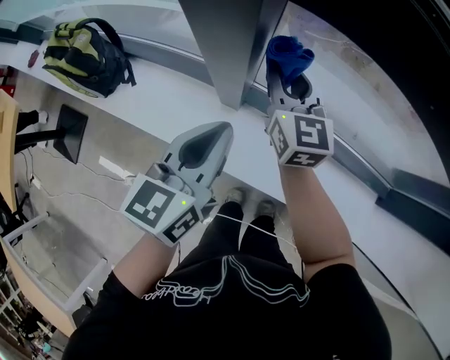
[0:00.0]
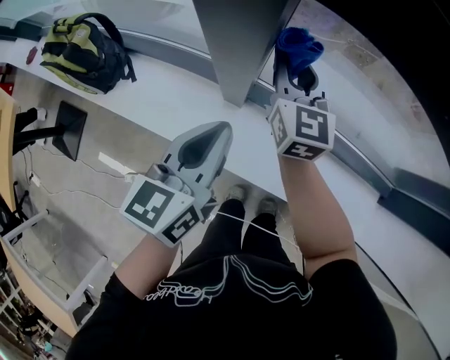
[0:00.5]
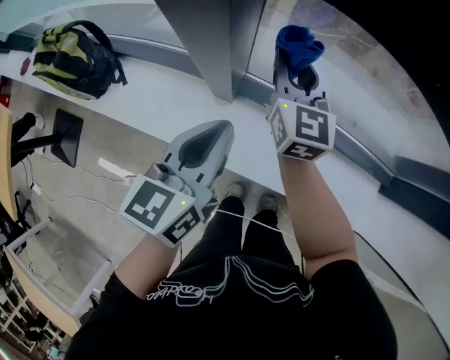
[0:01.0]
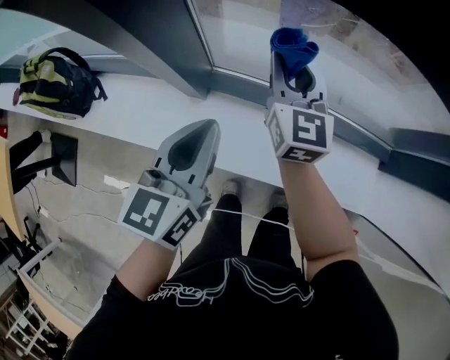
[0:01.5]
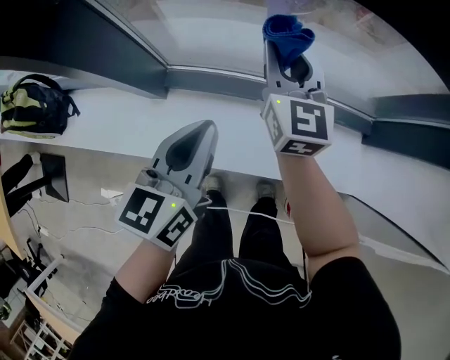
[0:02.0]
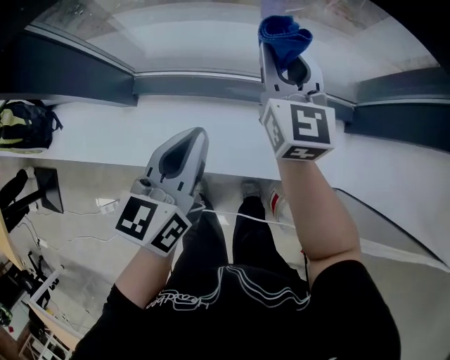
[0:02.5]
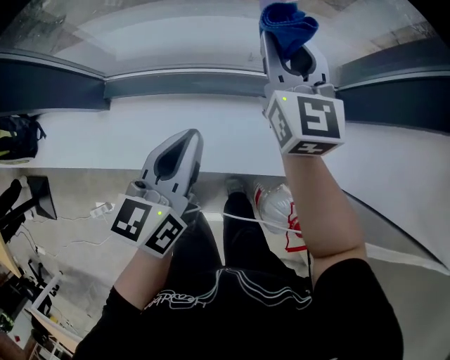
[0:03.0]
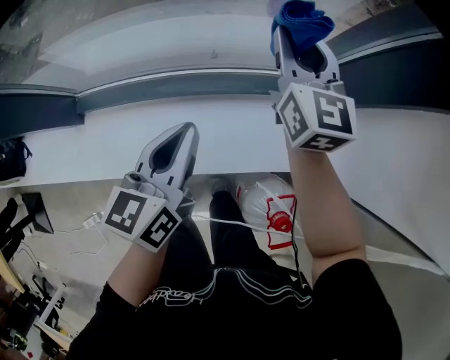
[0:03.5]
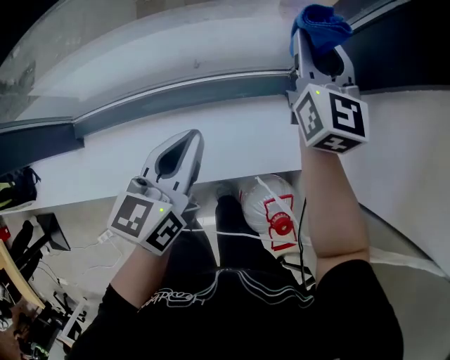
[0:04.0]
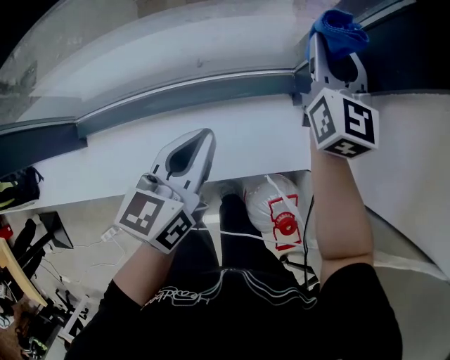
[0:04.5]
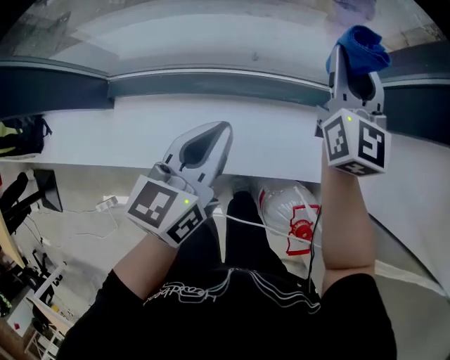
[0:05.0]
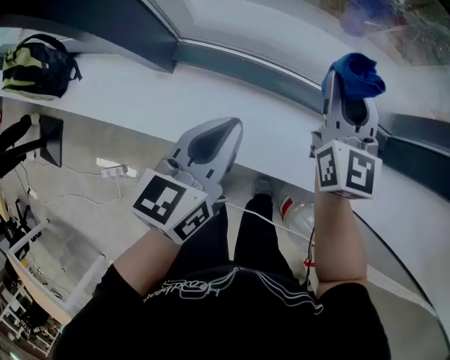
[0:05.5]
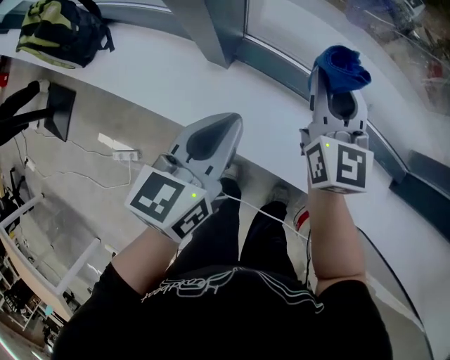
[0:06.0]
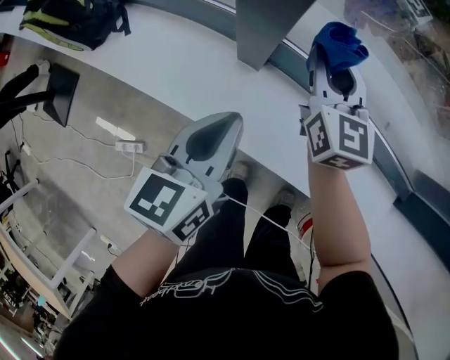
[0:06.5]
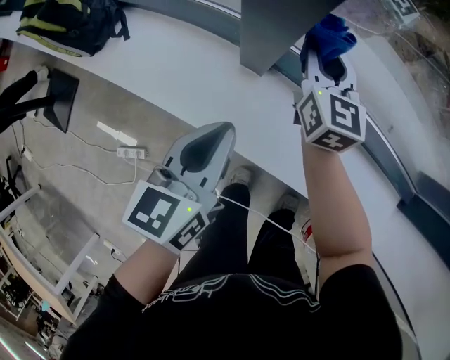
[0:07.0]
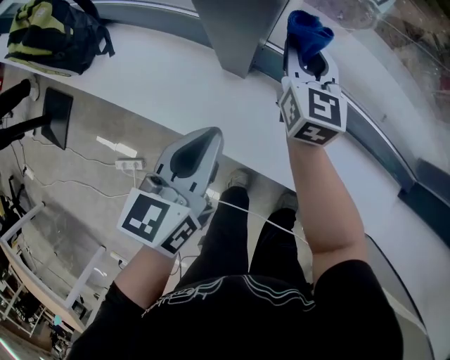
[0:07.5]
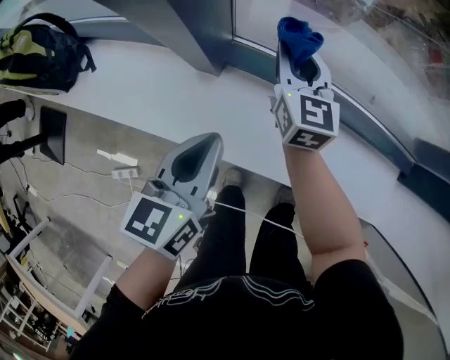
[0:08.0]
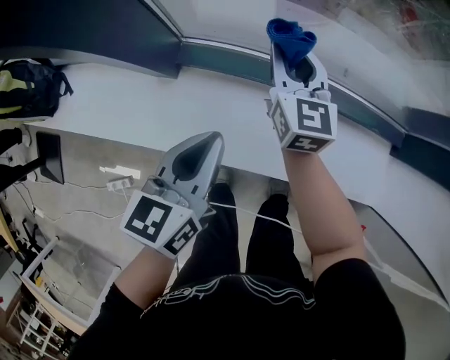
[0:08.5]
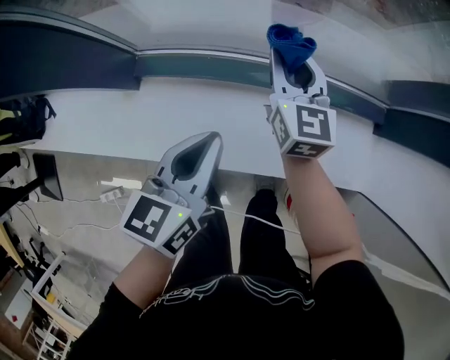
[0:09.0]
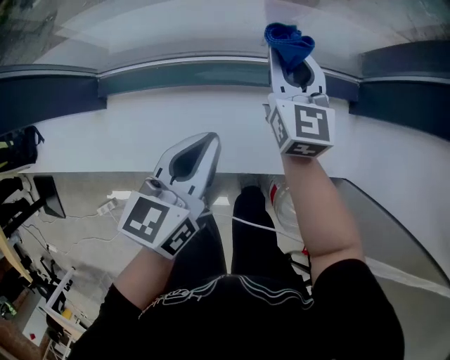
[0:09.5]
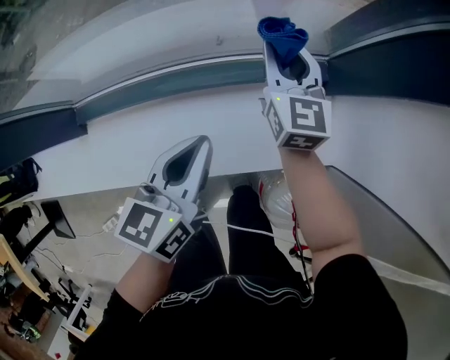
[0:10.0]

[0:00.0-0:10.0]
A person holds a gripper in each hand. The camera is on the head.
0:00.0 to 0:02.0: The two grippers go roughly 25 cm to the right.
0:02.0 to 0:04.0: The grippers both shift to the right by roughly 40 cm. The right gripper turns by roughly 20 degrees.
0:04.0 to 0:06.0: The two grippers travel together, roughly 60 cm. The right gripper rotates some 30 degrees. The left gripper turns by about 30 degrees.
0:06.0 to 0:08.0: The right gripper moves downward, forward and to the left, about 15 cm; the left gripper goes about 5 cm downward, and moves about 10 cm to the left and comes back.
0:08.0 to 0:10.0: The pair of grippers is taken to the right, approximately 50 cm. The right gripper rotates about 20 degrees, while the left gripper swivels approximately 30 degrees.

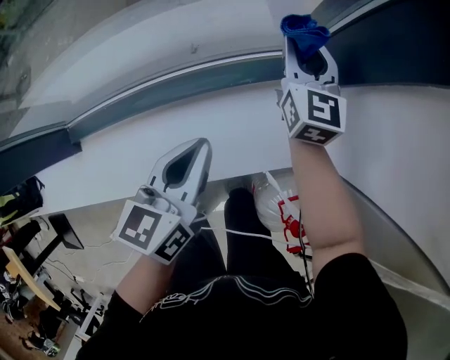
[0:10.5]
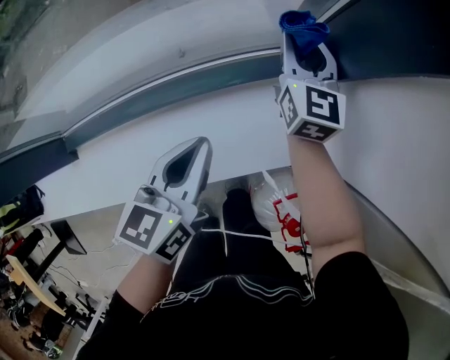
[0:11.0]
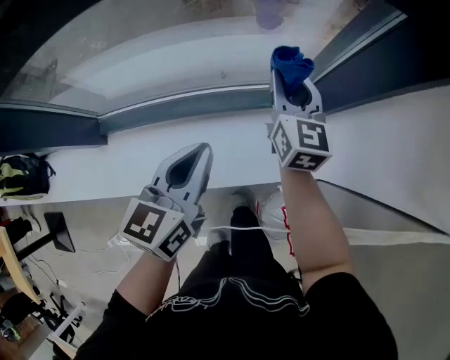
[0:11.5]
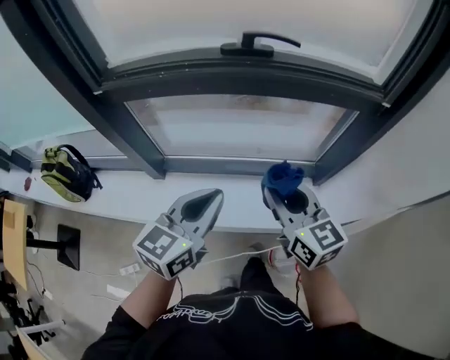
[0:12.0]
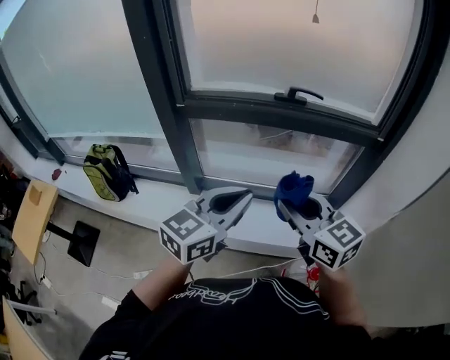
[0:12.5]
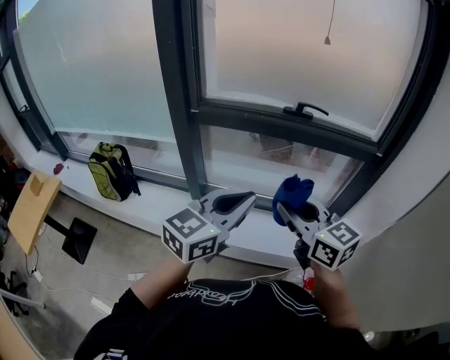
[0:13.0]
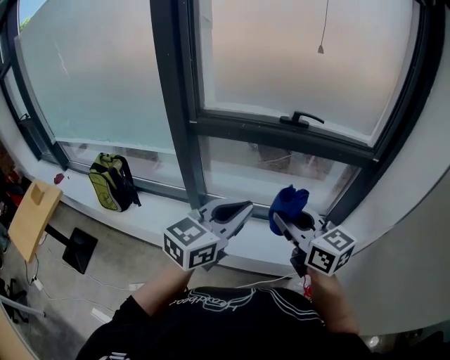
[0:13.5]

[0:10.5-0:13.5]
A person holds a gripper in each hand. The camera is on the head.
0:10.5 to 0:12.0: The left gripper shifts roughly 40 cm upward, backward and to the left, and turns by roughly 20 degrees, while the right gripper goes some 50 cm backward, upward and to the left, and turns by roughly 40 degrees.
0:12.0 to 0:13.5: The two grippers go approximately 25 cm upward, backward and to the left.

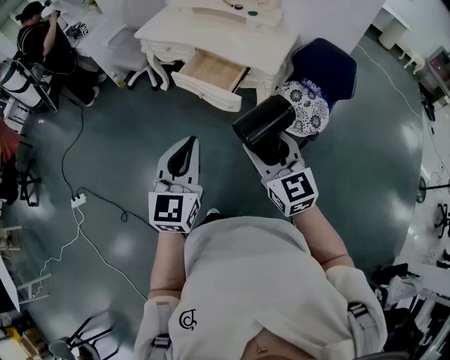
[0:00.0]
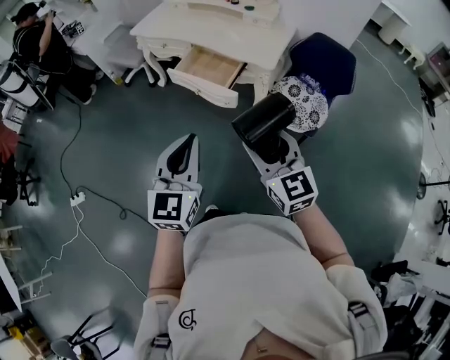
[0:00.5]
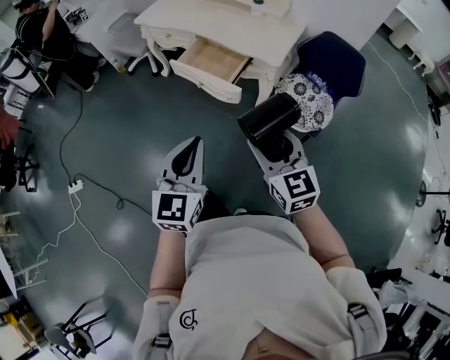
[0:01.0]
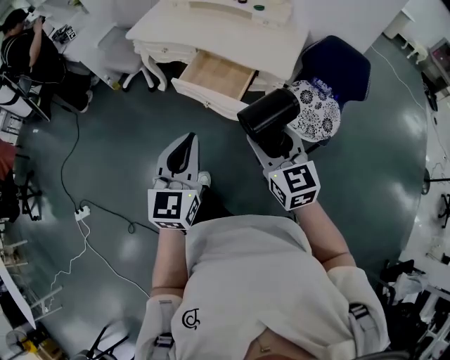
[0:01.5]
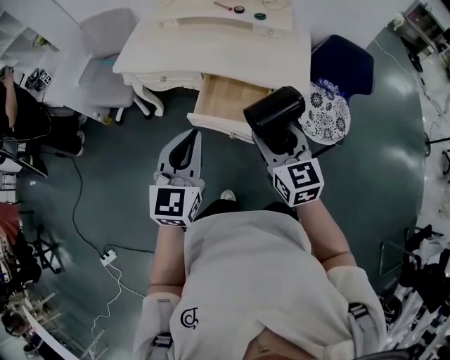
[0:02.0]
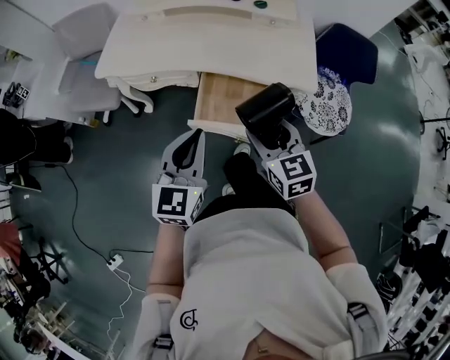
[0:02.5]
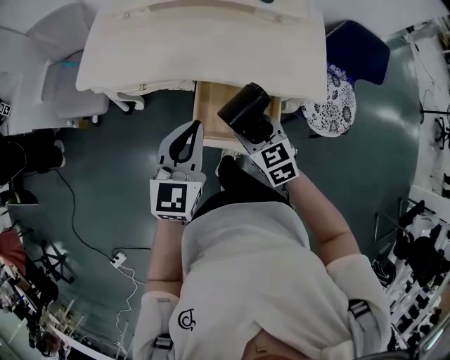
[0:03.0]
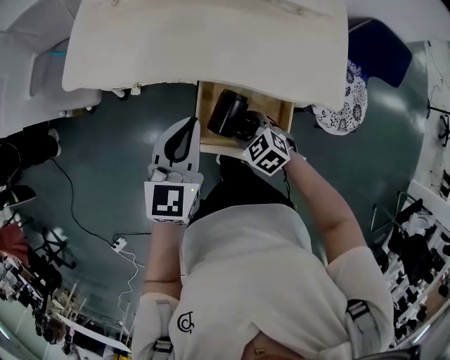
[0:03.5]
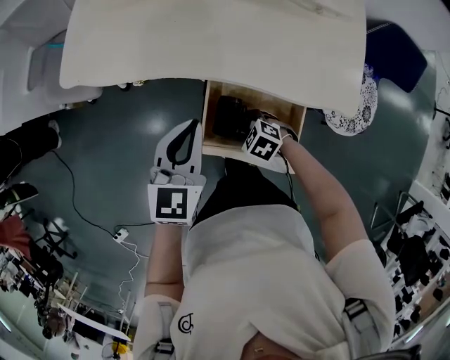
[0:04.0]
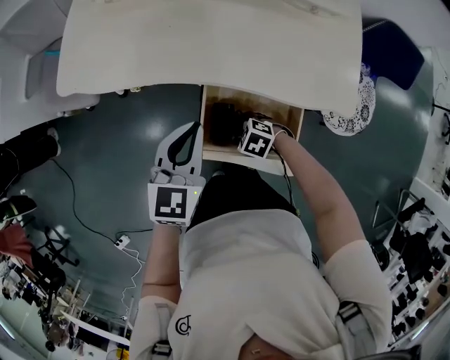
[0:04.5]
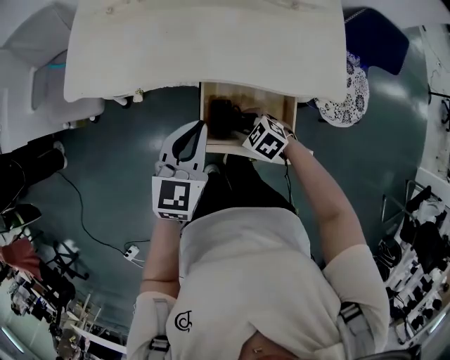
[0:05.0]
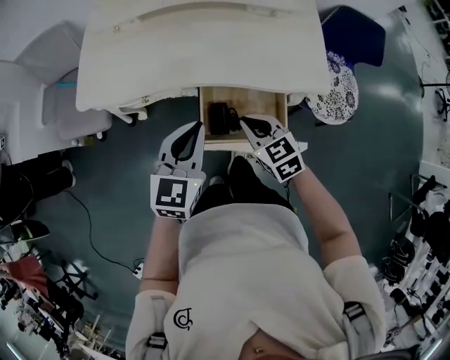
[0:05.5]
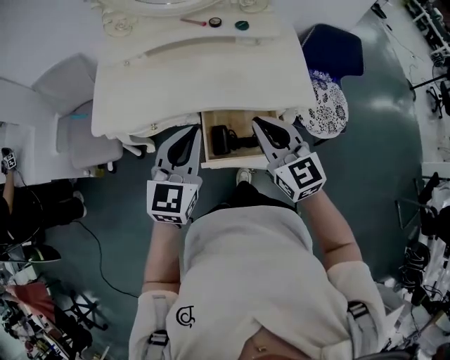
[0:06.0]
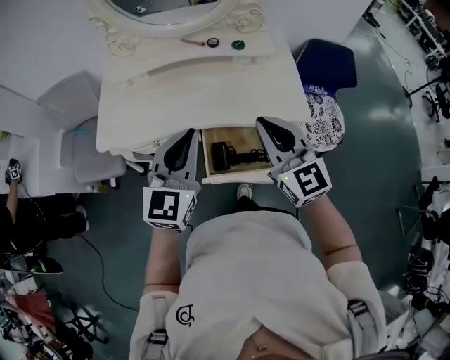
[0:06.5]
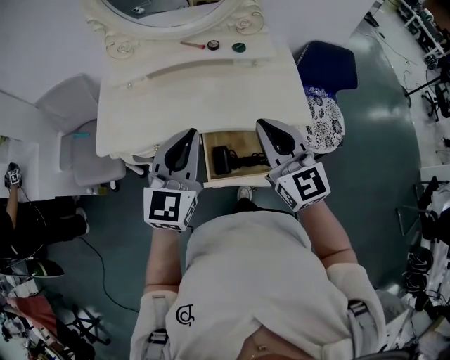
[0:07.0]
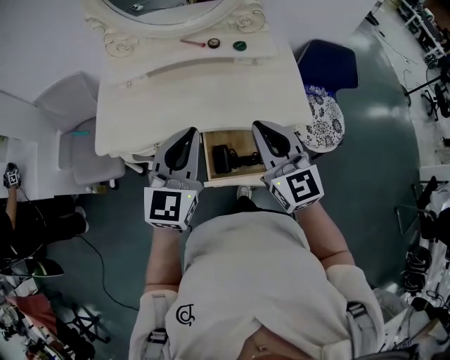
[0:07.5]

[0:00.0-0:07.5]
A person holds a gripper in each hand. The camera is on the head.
0:00.0 to 0:02.0: The grippers both shift forward and to the left by approximately 35 cm. The right gripper changes its angle by some 20 degrees.
0:02.0 to 0:04.0: The right gripper heads downward, covering approximately 40 cm, and points its fingers approximately 50 degrees further downward, while the left gripper shifts by approximately 35 cm.
0:04.0 to 0:05.5: The right gripper heads upward, covering some 20 cm, turns by approximately 50 degrees, and closes, while the left gripper changes place by roughly 5 cm.
0:05.5 to 0:07.5: The right gripper travels upward by roughly 25 cm, and angles its fingers upward, by some 40 degrees; the left gripper heads upward, covering about 15 cm.

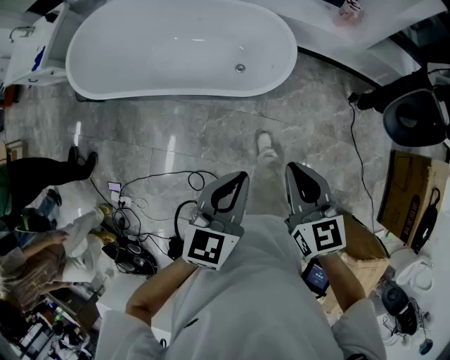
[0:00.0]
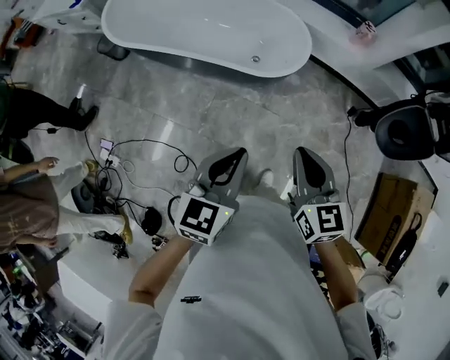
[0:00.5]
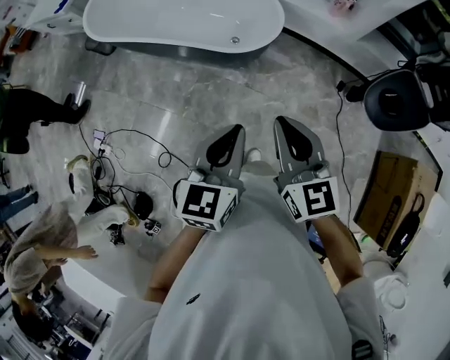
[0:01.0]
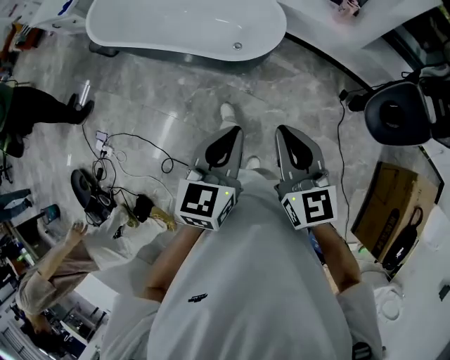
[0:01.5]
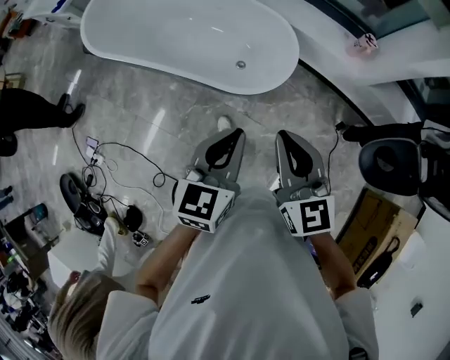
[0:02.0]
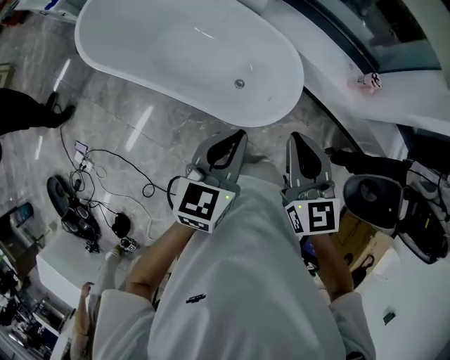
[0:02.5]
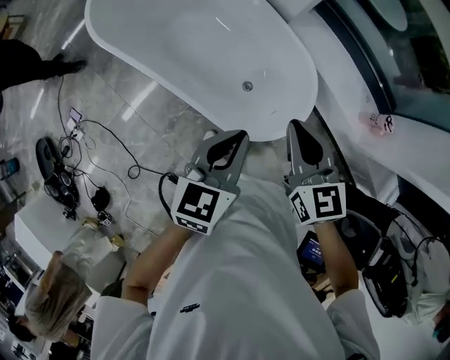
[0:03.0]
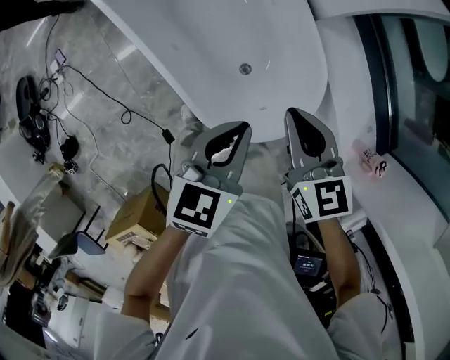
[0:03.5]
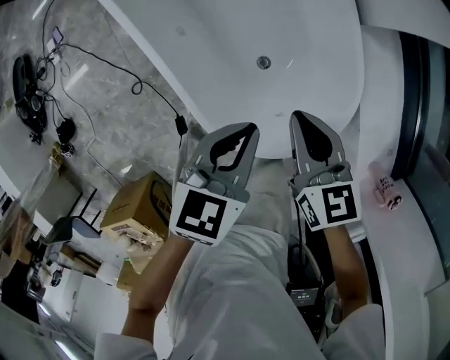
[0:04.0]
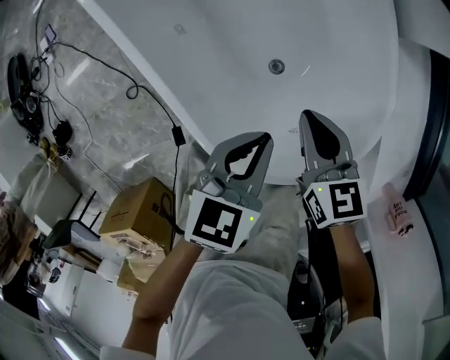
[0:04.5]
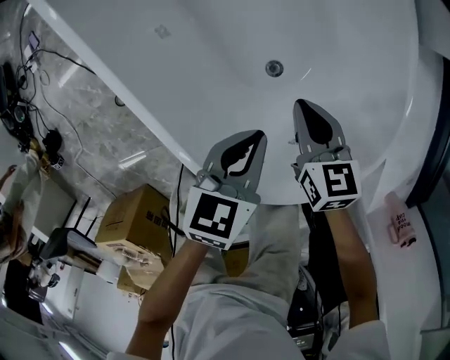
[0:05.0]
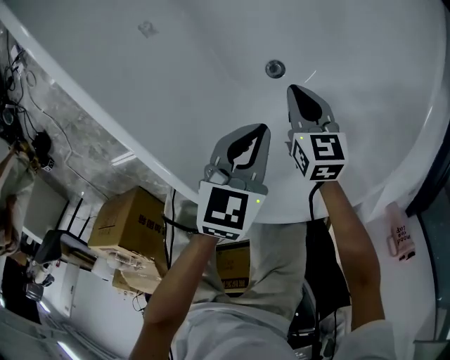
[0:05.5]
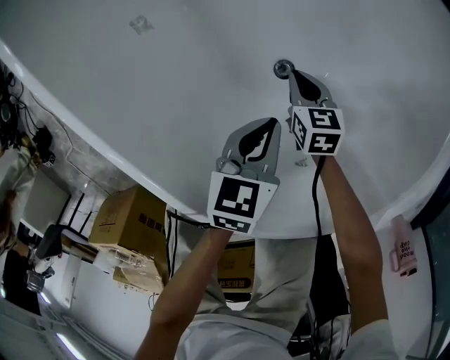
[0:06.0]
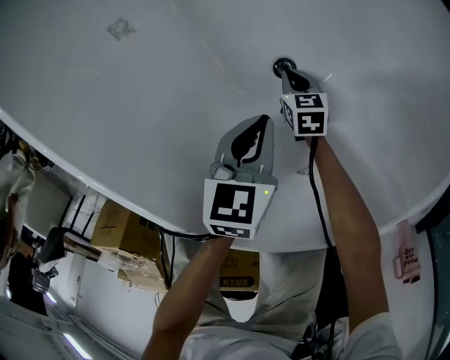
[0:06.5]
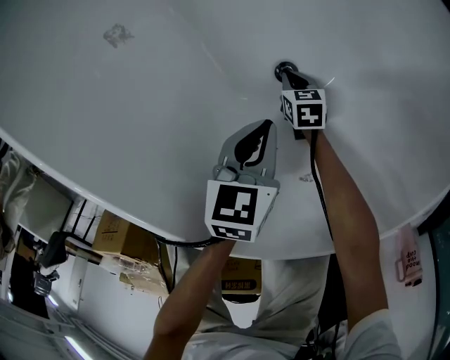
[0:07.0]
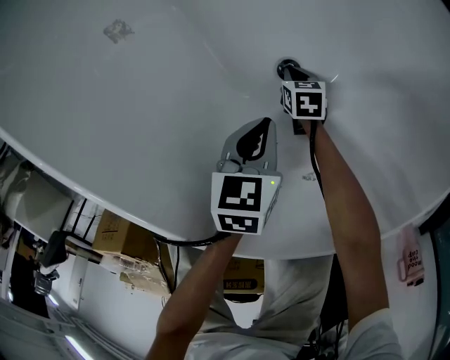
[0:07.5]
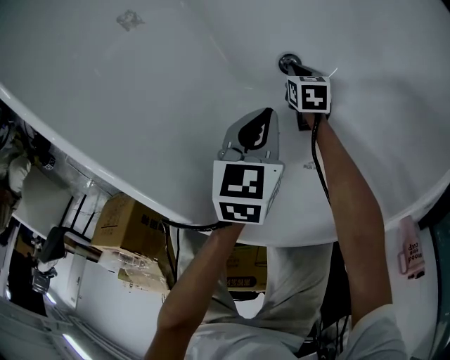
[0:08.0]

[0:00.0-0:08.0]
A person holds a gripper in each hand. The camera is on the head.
0:00.0 to 0:02.0: The left gripper shifts approximately 15 cm forward and to the right. The right gripper goes some 15 cm forward, to the right and upward, and turns by approximately 20 degrees.
0:02.0 to 0:04.0: The left gripper changes place by some 50 cm, and turns by approximately 40 degrees. The right gripper changes place by approximately 60 cm, and turns by some 50 degrees.
0:04.0 to 0:06.0: Both grippers move downward, approximately 40 cm. The right gripper changes its angle by about 20 degrees.
0:06.0 to 0:08.0: The right gripper travels downward by some 15 cm, and swivels some 20 degrees; the left gripper goes some 5 cm downward.
